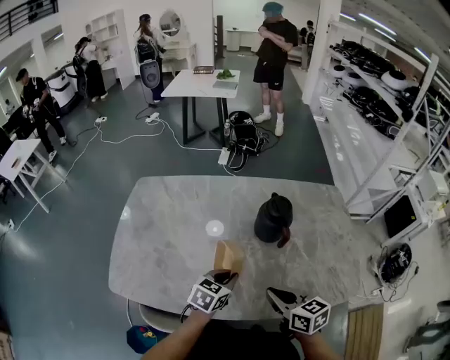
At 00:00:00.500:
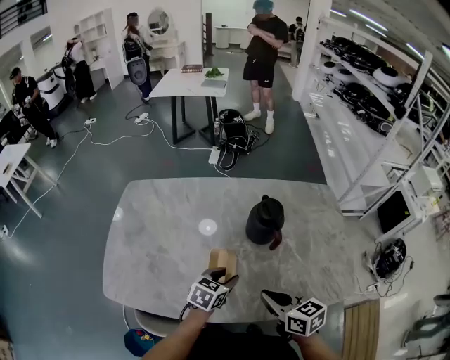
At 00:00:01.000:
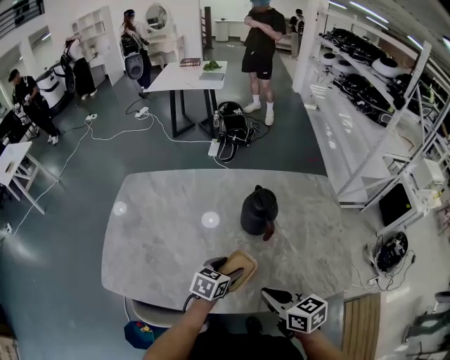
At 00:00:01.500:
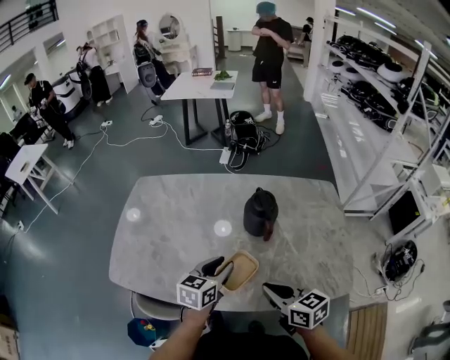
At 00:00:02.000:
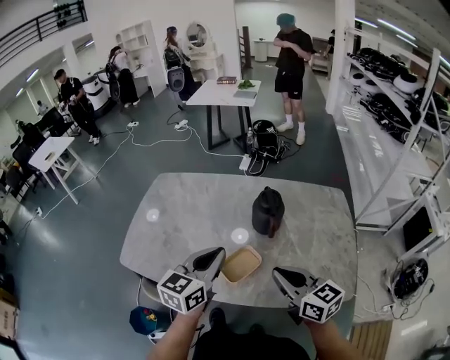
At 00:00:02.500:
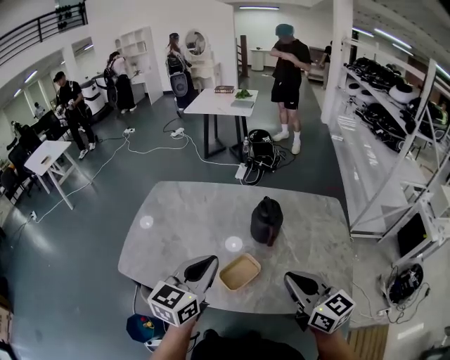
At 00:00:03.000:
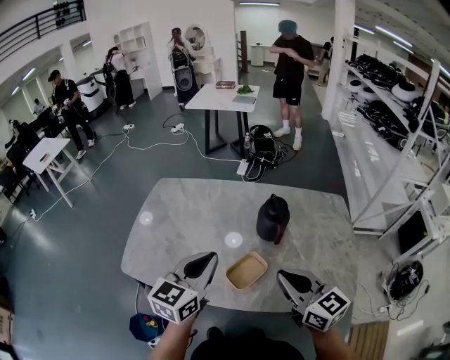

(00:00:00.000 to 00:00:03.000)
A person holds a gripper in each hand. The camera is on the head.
00:00:00.000 - 00:00:01.500: The right gripper shifts by some 5 cm. Meanwhile the left gripper heads upward, covering about 5 cm, and opens up.
00:00:01.500 - 00:00:03.000: Both grippers move upward, roughly 15 cm. The left gripper changes its angle by about 20 degrees, and closes up, while the right gripper turns by some 20 degrees.

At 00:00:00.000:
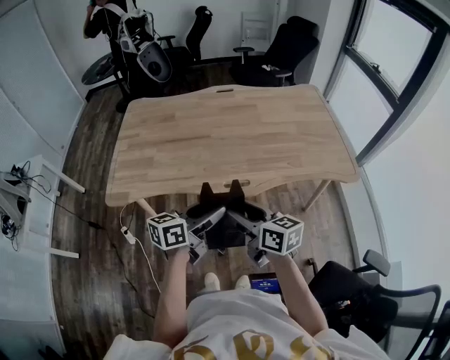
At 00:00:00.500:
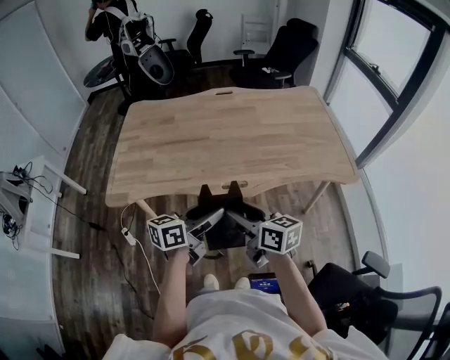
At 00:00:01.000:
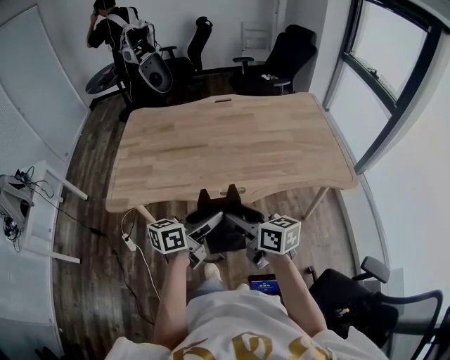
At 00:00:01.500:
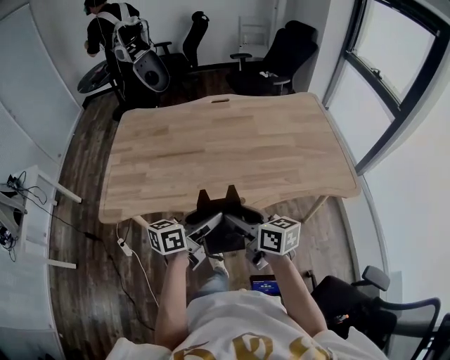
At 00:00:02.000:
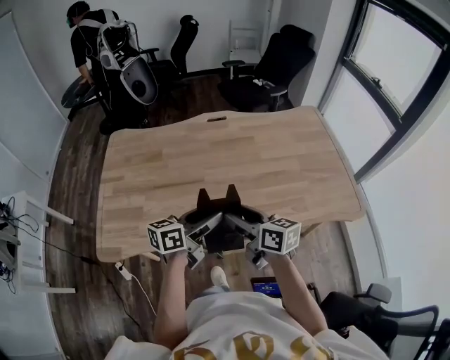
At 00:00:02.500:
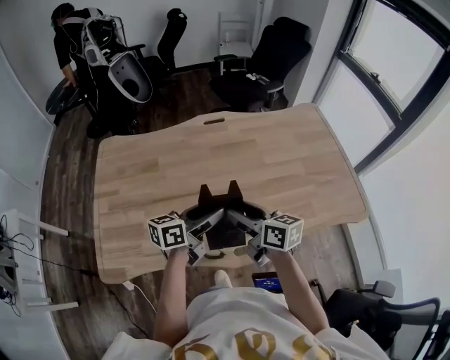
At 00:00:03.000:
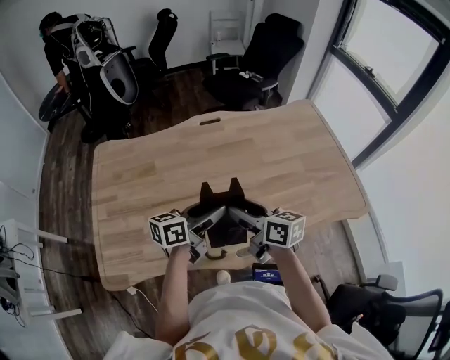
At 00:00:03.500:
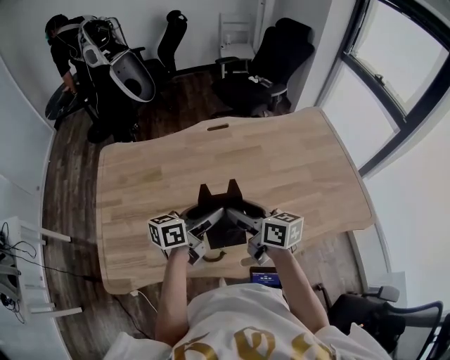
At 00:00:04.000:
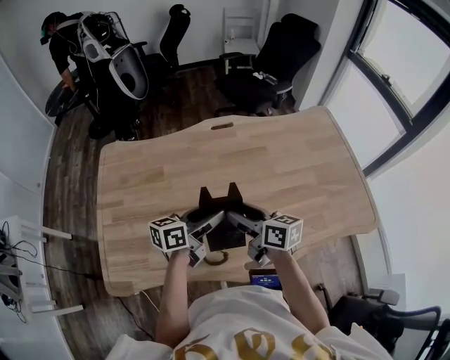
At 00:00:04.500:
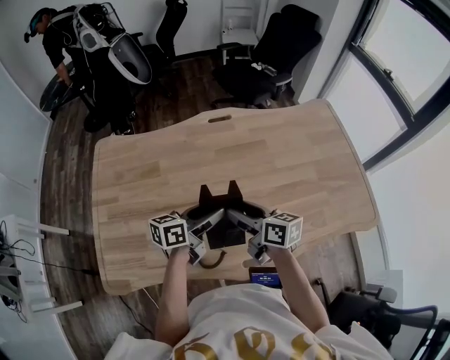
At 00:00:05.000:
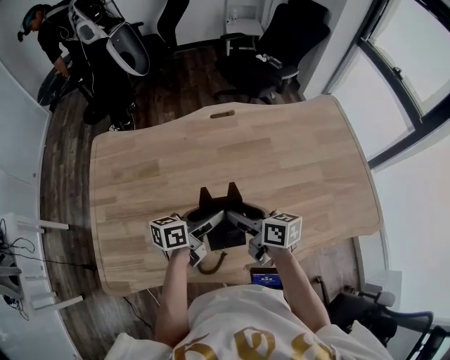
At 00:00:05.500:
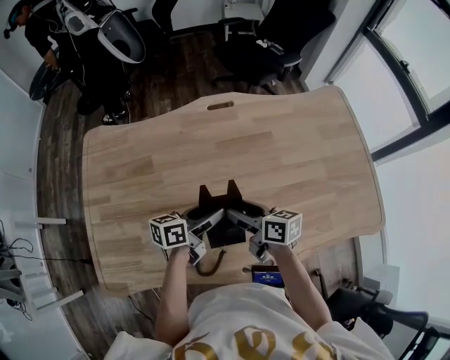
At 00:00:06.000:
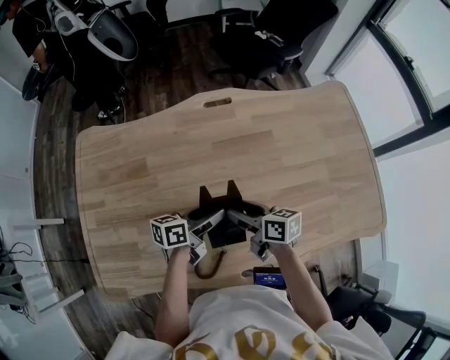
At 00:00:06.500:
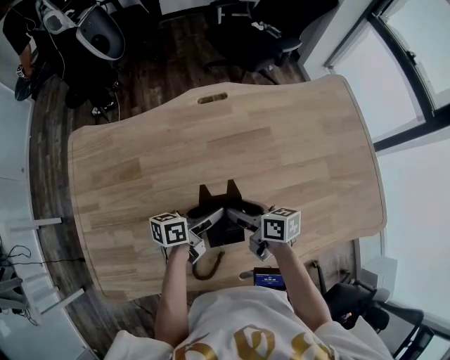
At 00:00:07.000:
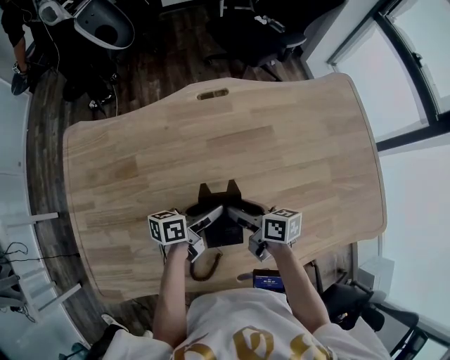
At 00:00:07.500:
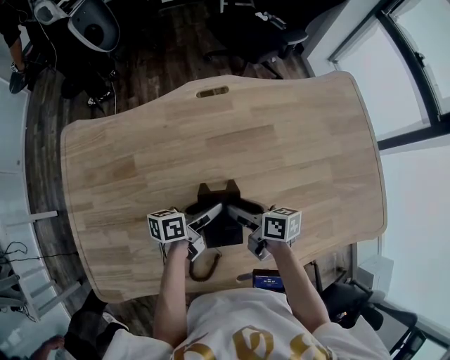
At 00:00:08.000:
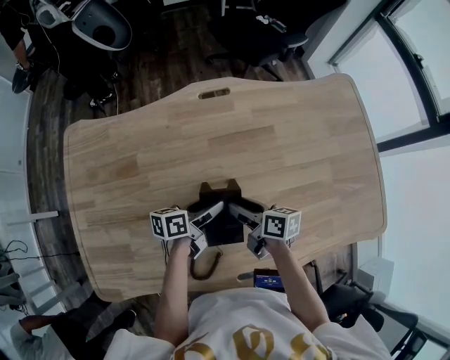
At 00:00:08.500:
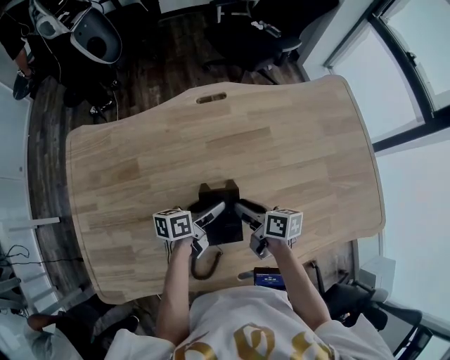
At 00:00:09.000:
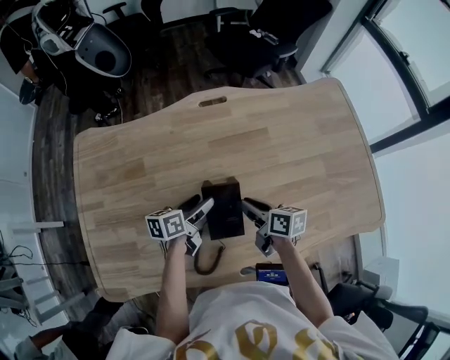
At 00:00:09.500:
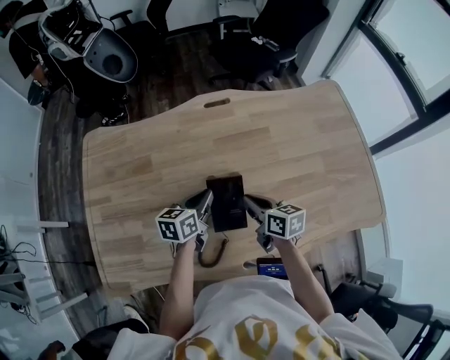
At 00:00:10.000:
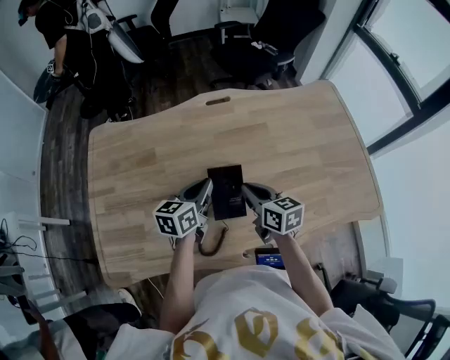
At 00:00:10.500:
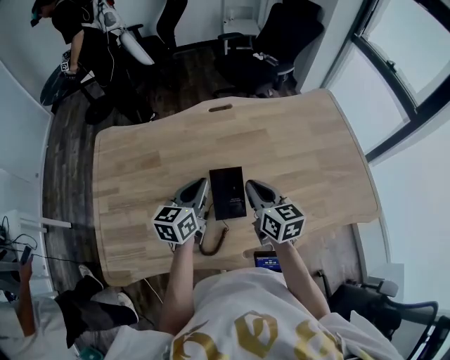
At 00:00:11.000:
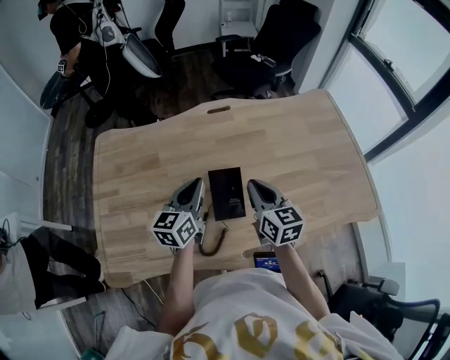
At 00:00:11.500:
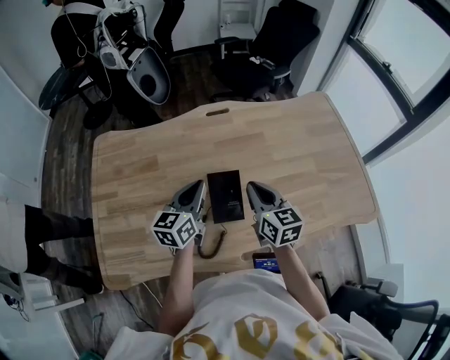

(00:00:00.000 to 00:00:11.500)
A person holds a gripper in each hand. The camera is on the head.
00:00:00.000 - 00:00:02.000: The two grippers go approximately 25 cm forward.
00:00:02.000 - 00:00:04.000: Both grippers move forward and to the left, some 15 cm.
00:00:04.000 - 00:00:06.000: Both grippers travel together downward and forward, about 15 cm.
00:00:06.000 - 00:00:07.500: The two grippers go about 5 cm downward.
00:00:07.500 - 00:00:09.500: The grippers both shift upward by about 5 cm. The right gripper closes up, while the left gripper turns by about 30 degrees, and closes its fingers.
00:00:09.500 - 00:00:11.500: Both grippers travel together upward, approximately 10 cm. The left gripper rotates some 20 degrees; the right gripper swivels approximately 30 degrees.

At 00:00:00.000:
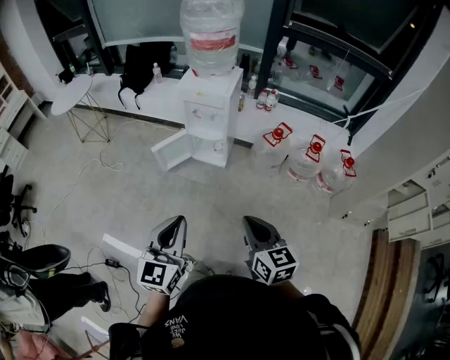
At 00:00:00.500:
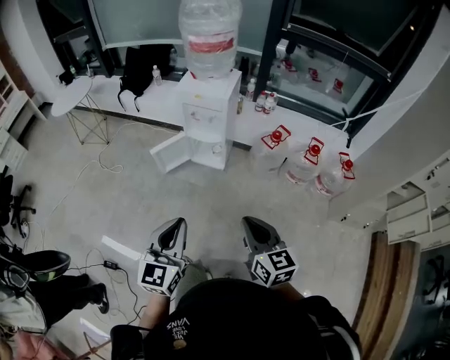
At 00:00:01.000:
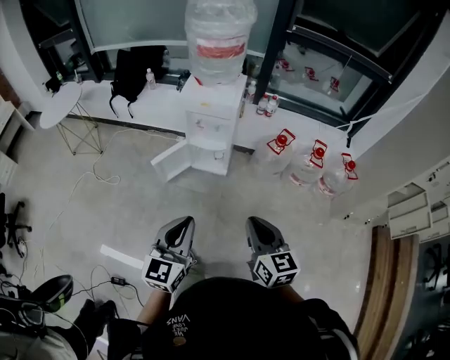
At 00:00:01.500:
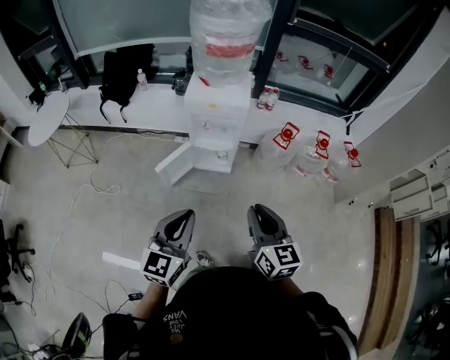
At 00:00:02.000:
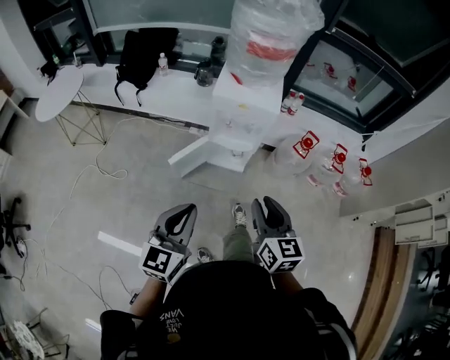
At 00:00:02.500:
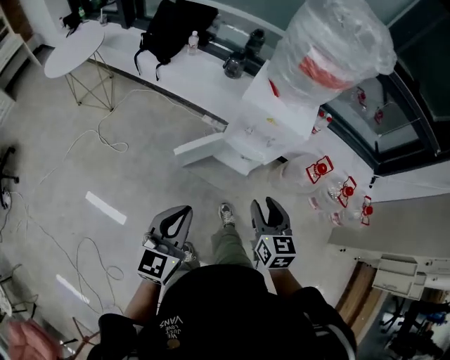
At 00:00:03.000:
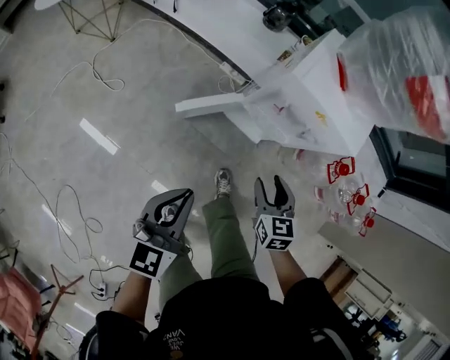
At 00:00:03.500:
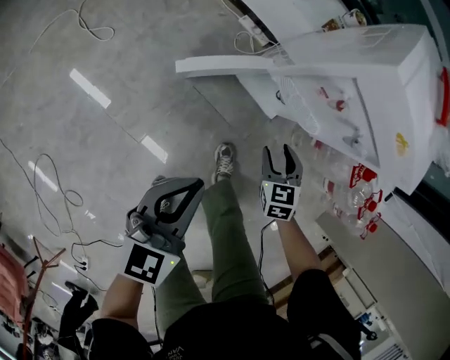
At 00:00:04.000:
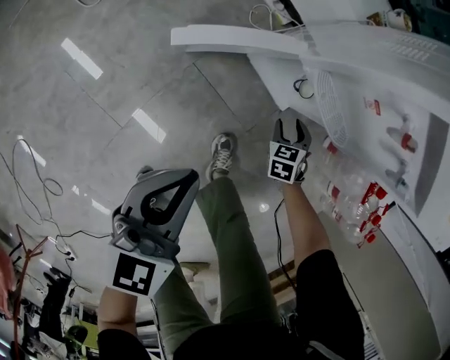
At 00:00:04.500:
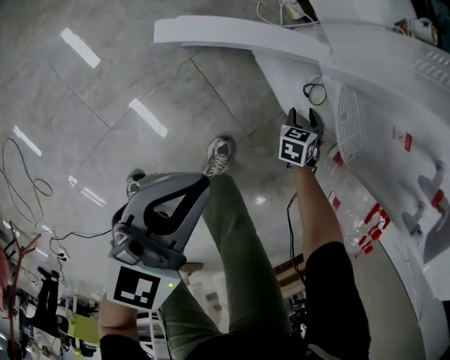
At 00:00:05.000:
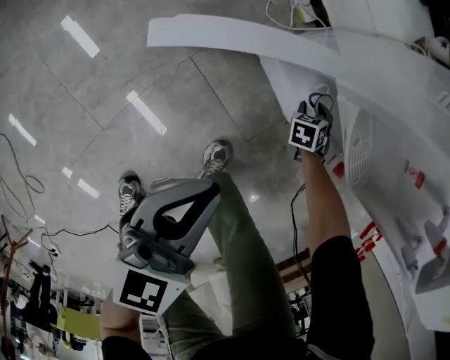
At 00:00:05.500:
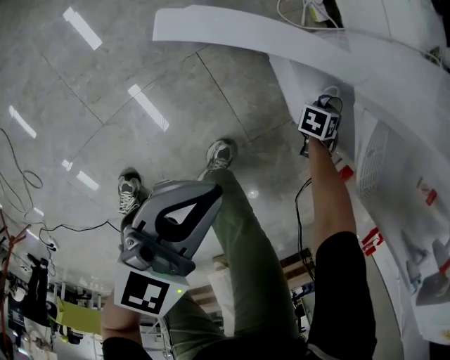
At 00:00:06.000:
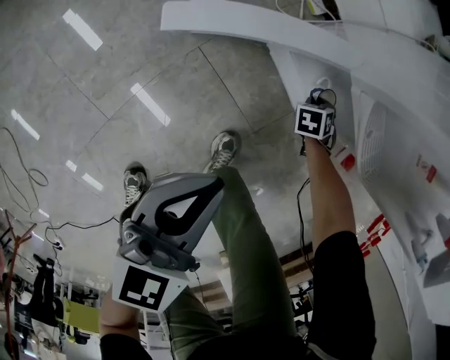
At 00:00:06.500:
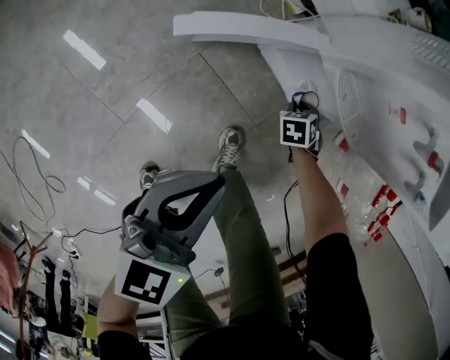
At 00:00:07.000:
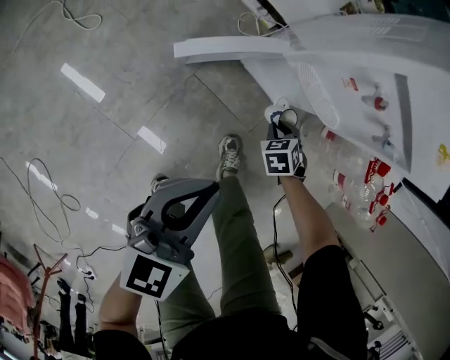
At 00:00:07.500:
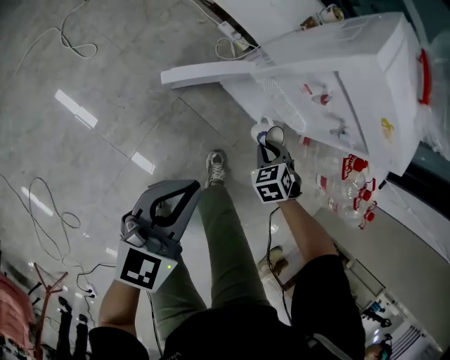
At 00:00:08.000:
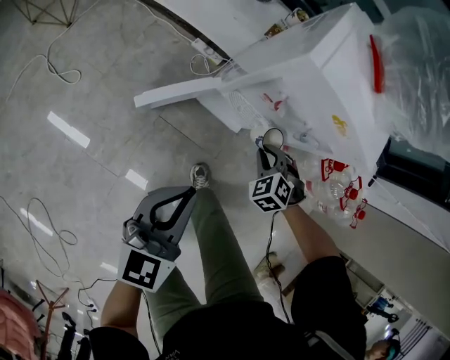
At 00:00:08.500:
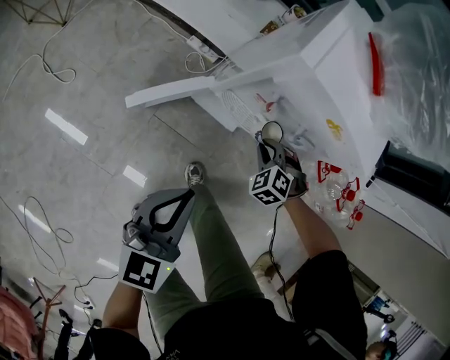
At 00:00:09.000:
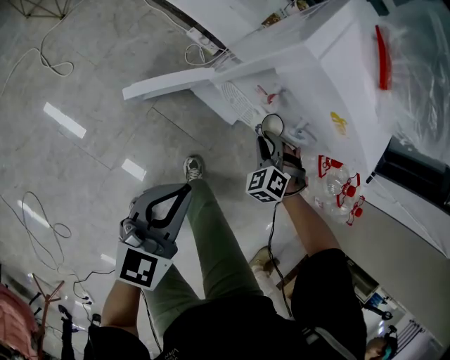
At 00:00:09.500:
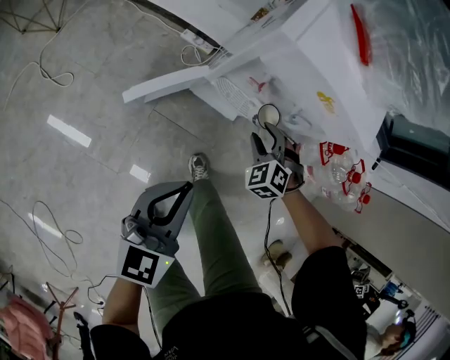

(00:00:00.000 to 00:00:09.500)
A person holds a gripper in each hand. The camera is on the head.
00:00:00.000 - 00:00:02.000: Both grippers travel together to the left and forward, some 35 cm.
00:00:02.000 - 00:00:04.000: The right gripper goes approximately 80 cm downward and forward, points its fingers approximately 40 degrees further downward, and opens its fingers; the left gripper heads downward and forward, covering about 50 cm, and swivels roughly 30 degrees.
00:00:04.000 - 00:00:05.500: The left gripper moves downward and forward, about 15 cm. Meanwhile the right gripper is displaced downward and forward by approximately 25 cm, changes its angle by some 20 degrees, and closes.
00:00:05.500 - 00:00:07.500: The left gripper is displaced upward by some 30 cm; the right gripper is displaced upward and backward by roughly 40 cm, and rotates approximately 30 degrees.
00:00:07.500 - 00:00:09.500: The left gripper is displaced to the right and forward by some 10 cm; the right gripper goes some 15 cm upward, forward and to the right, and opens.

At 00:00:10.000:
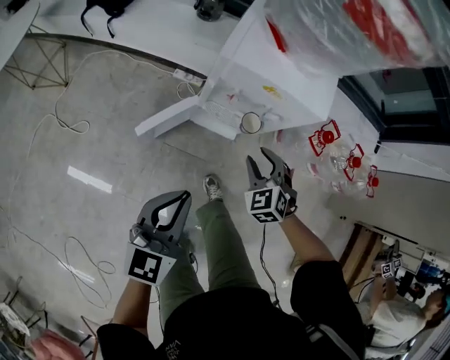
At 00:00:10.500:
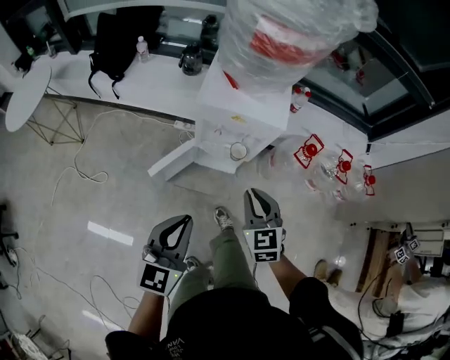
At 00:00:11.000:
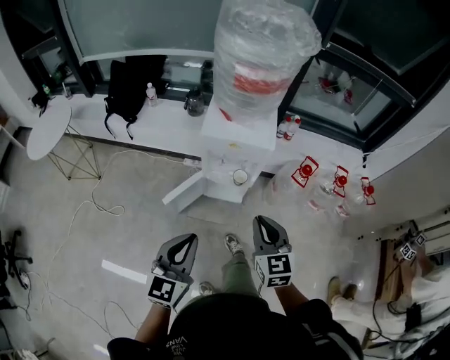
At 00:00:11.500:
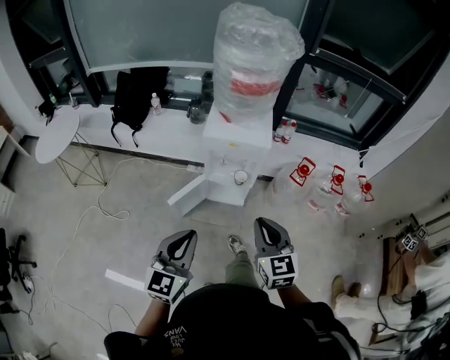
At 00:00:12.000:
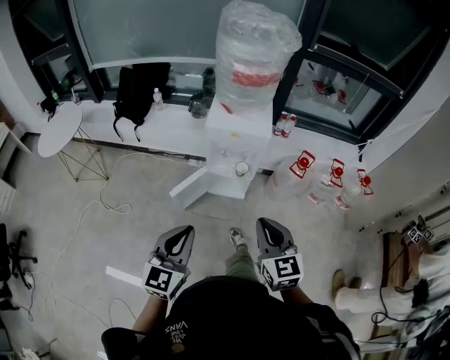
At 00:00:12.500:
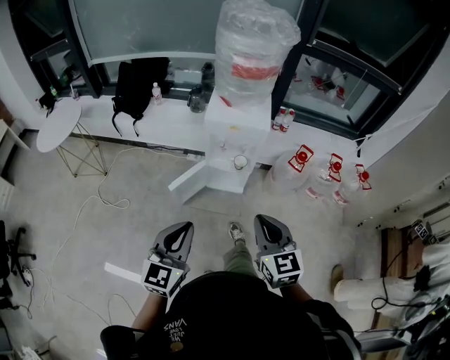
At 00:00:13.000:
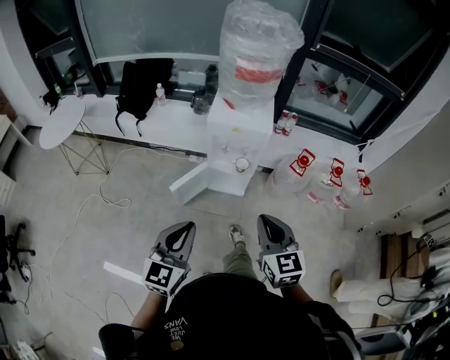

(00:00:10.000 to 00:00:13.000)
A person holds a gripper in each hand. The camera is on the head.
00:00:10.000 - 00:00:11.500: Both grippers move upward and backward, roughly 35 cm. The right gripper turns by roughly 50 degrees, and closes up.
00:00:11.500 - 00:00:13.000: Both grippers travel together backward, approximately 5 cm.
